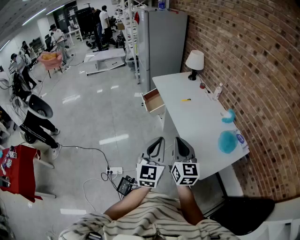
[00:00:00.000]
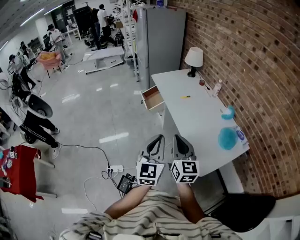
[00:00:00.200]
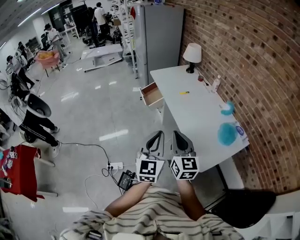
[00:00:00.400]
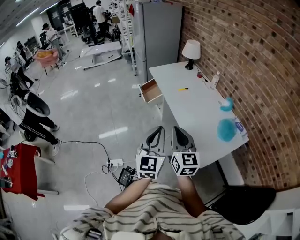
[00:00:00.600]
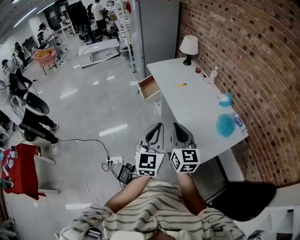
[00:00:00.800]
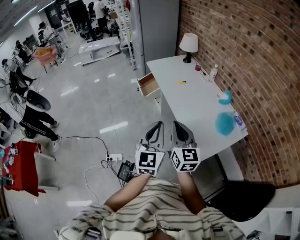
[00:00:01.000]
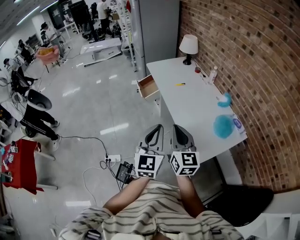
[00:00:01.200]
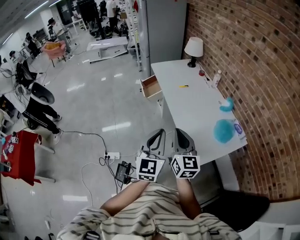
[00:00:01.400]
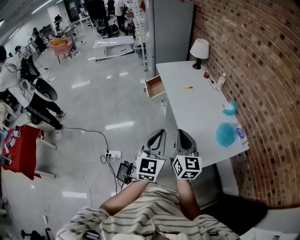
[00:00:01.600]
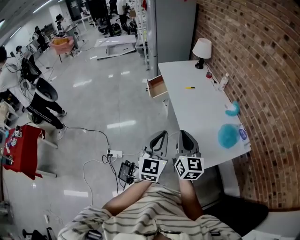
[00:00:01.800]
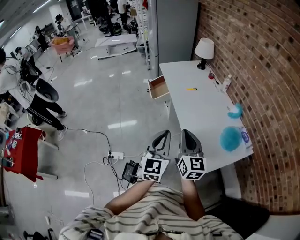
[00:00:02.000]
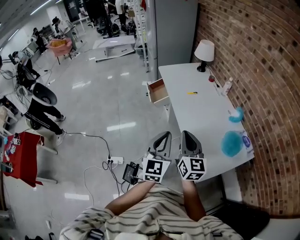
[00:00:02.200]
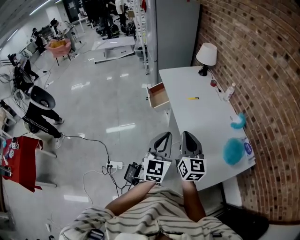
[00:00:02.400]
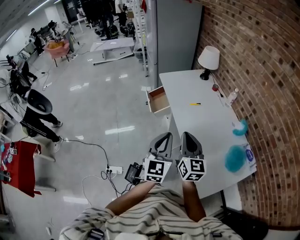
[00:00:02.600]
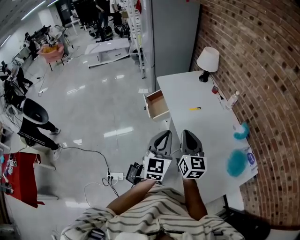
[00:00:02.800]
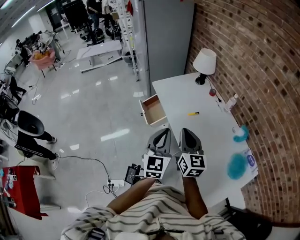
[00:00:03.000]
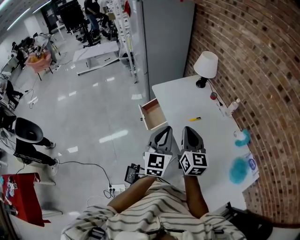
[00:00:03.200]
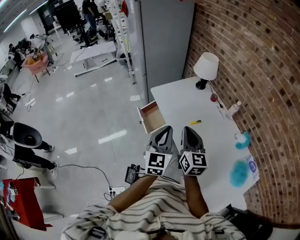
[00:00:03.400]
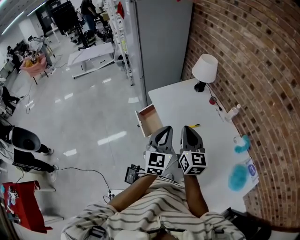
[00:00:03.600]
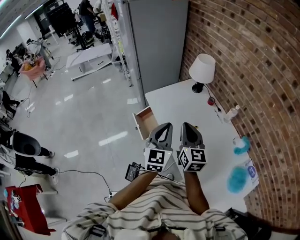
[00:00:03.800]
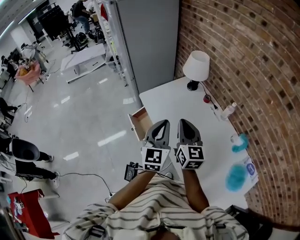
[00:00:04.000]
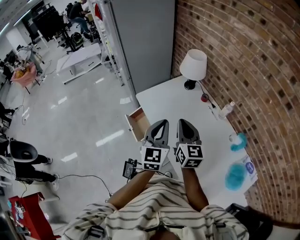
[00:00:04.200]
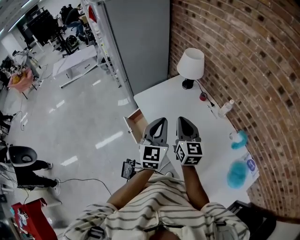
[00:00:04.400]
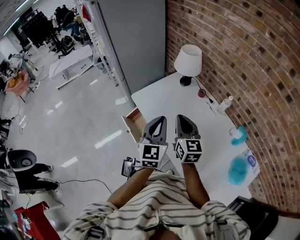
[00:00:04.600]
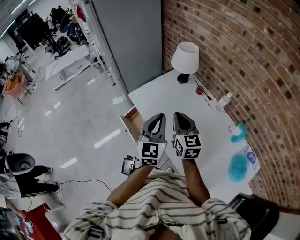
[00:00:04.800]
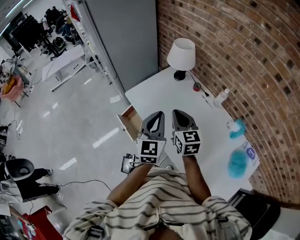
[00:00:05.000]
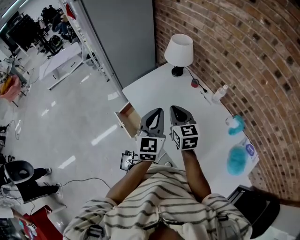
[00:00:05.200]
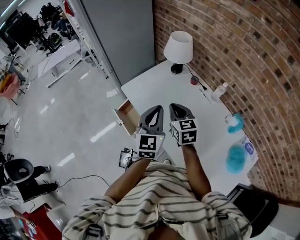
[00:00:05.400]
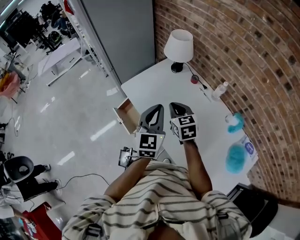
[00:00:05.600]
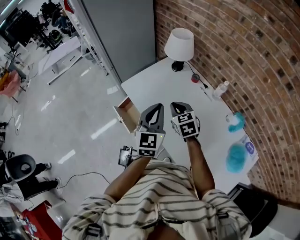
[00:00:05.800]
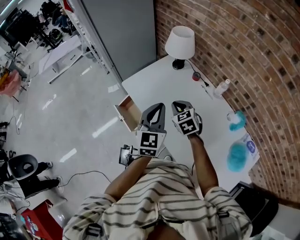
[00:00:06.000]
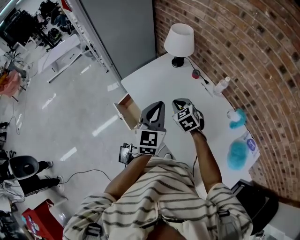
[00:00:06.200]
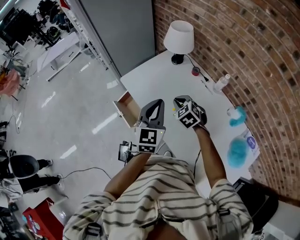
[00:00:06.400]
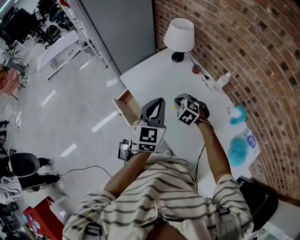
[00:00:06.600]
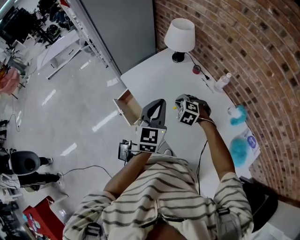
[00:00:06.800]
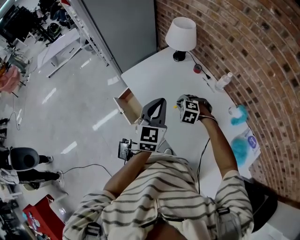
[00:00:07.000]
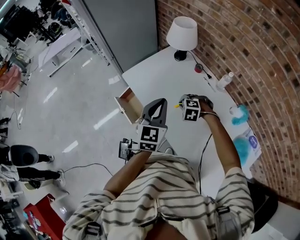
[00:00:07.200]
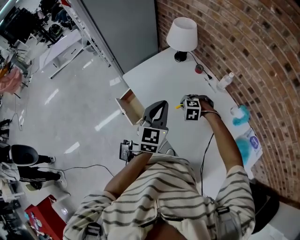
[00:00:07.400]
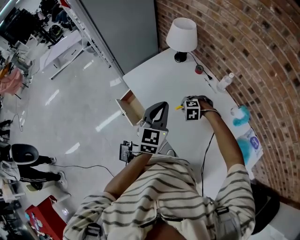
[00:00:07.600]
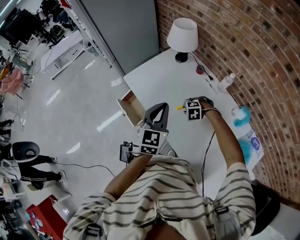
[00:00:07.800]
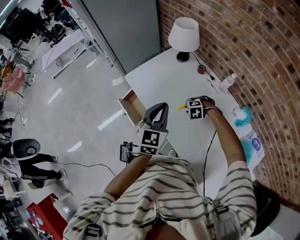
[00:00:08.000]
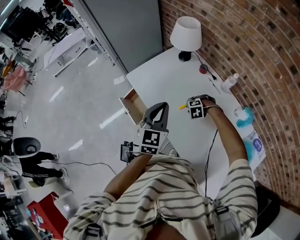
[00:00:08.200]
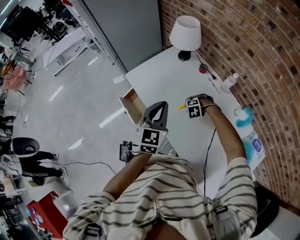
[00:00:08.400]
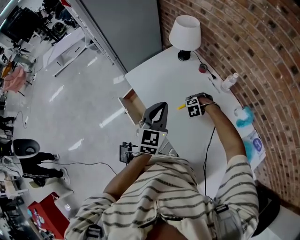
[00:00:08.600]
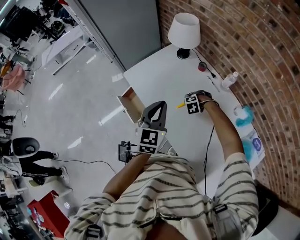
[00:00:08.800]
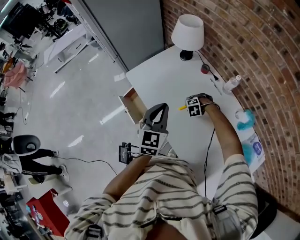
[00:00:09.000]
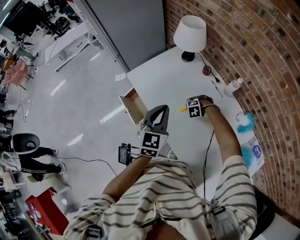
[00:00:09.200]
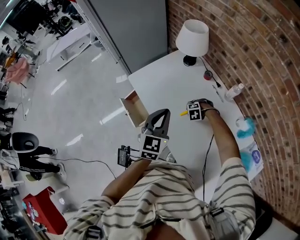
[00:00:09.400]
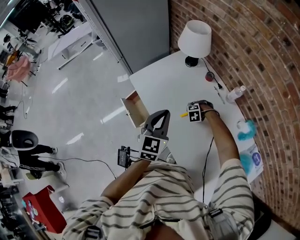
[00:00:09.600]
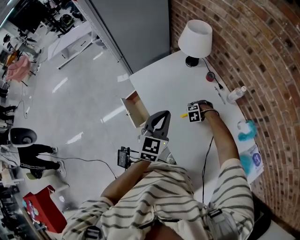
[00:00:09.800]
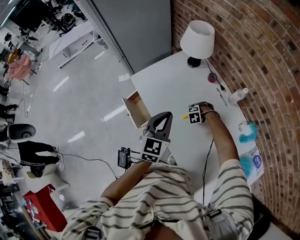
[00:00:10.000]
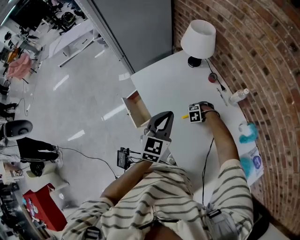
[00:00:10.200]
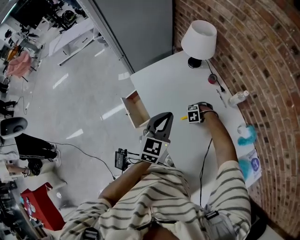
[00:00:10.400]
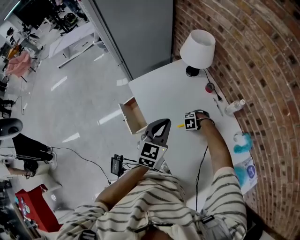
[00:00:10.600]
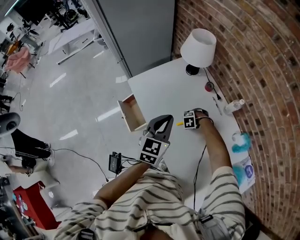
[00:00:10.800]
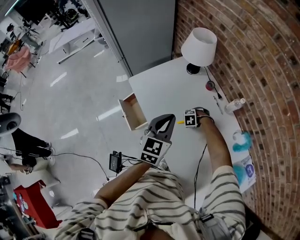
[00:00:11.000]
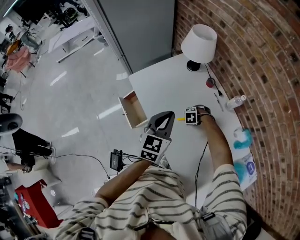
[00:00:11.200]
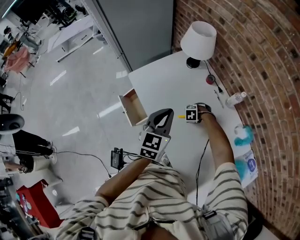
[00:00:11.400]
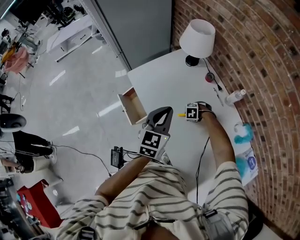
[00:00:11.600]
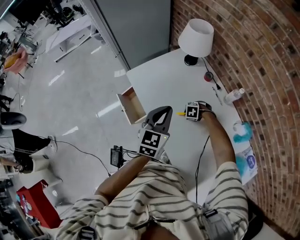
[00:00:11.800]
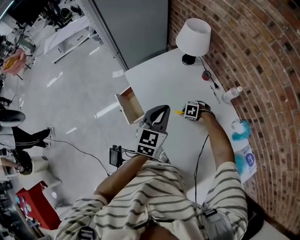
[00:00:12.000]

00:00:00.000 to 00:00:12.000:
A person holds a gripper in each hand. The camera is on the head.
00:00:00.000 to 00:00:01.600: The grippers both shift to the right by approximately 10 cm.
00:00:01.600 to 00:00:03.000: Both grippers move forward, roughly 35 cm.
00:00:03.000 to 00:00:04.400: Both grippers travel together forward, some 25 cm.
00:00:04.400 to 00:00:06.000: The left gripper changes place by roughly 5 cm; the right gripper goes approximately 15 cm downward and forward, and points its fingers approximately 30 degrees further downward.
00:00:06.000 to 00:00:07.600: The right gripper moves downward, approximately 15 cm, and tips its fingers downward by some 40 degrees.
00:00:07.600 to 00:00:09.000: The right gripper moves downward, approximately 10 cm.
00:00:09.000 to 00:00:10.400: The right gripper shifts by approximately 5 cm.
00:00:10.400 to 00:00:12.000: The grippers stay close to where they were, moving slightly.

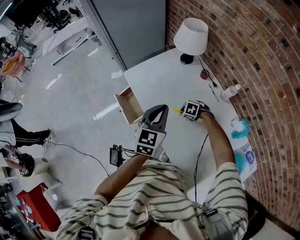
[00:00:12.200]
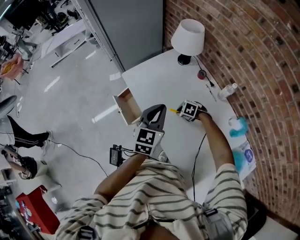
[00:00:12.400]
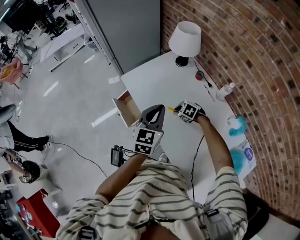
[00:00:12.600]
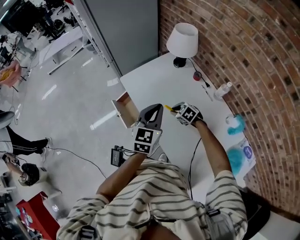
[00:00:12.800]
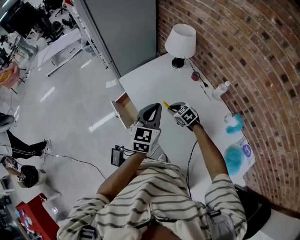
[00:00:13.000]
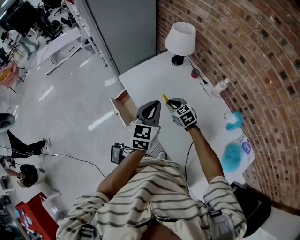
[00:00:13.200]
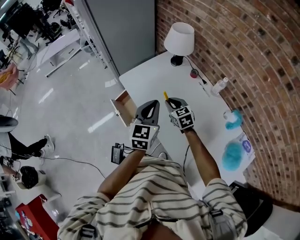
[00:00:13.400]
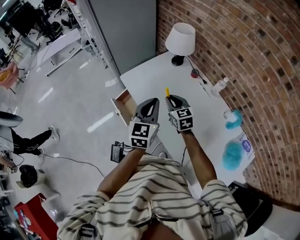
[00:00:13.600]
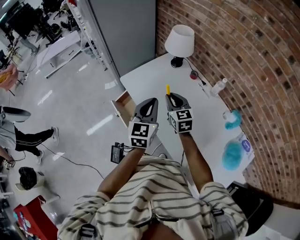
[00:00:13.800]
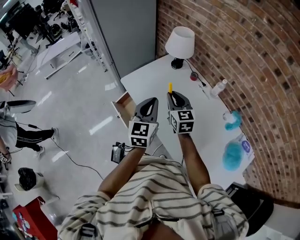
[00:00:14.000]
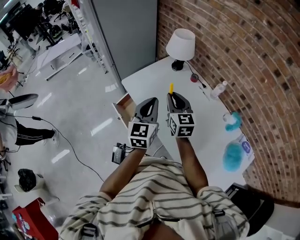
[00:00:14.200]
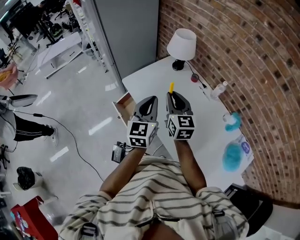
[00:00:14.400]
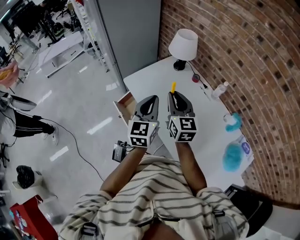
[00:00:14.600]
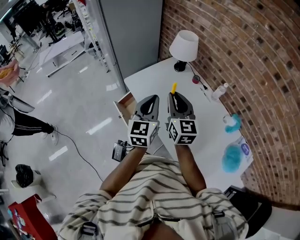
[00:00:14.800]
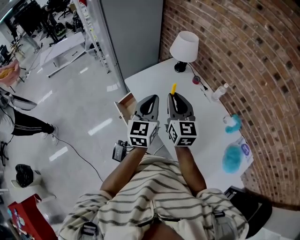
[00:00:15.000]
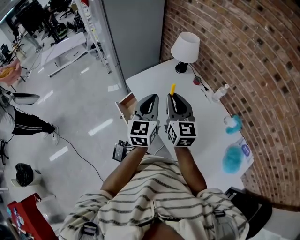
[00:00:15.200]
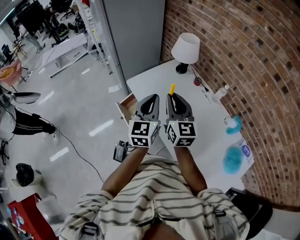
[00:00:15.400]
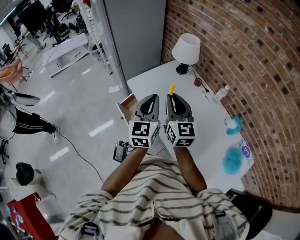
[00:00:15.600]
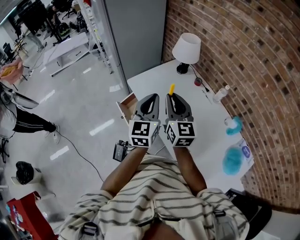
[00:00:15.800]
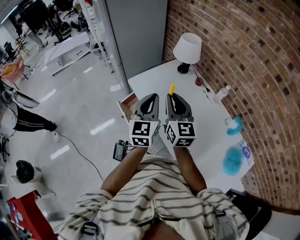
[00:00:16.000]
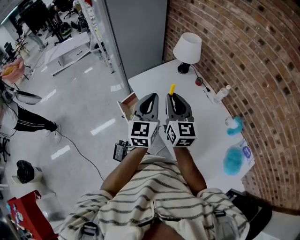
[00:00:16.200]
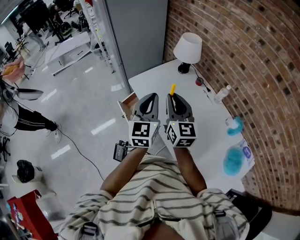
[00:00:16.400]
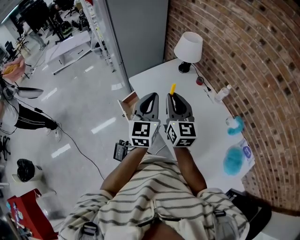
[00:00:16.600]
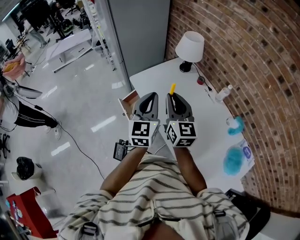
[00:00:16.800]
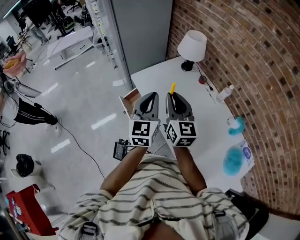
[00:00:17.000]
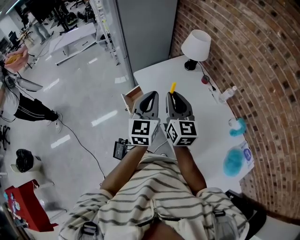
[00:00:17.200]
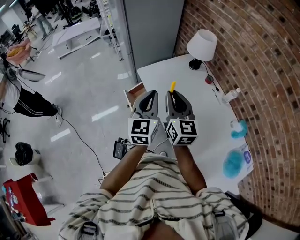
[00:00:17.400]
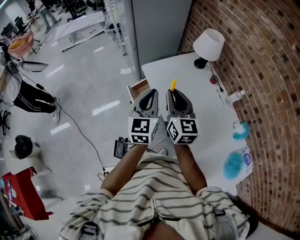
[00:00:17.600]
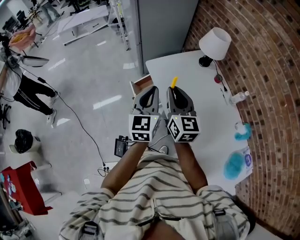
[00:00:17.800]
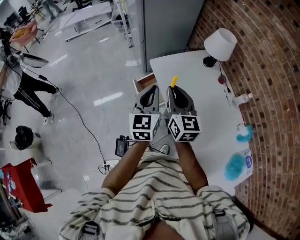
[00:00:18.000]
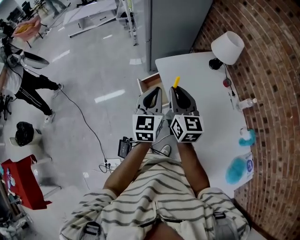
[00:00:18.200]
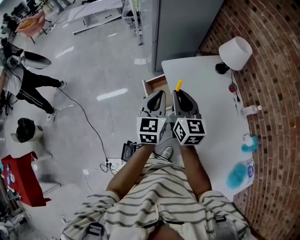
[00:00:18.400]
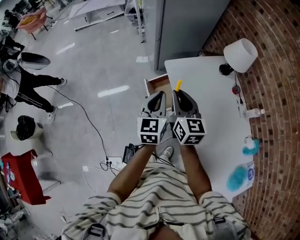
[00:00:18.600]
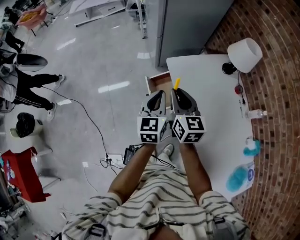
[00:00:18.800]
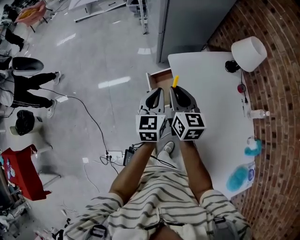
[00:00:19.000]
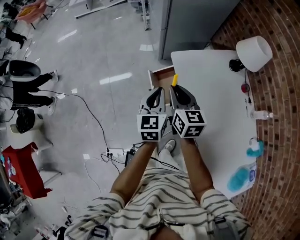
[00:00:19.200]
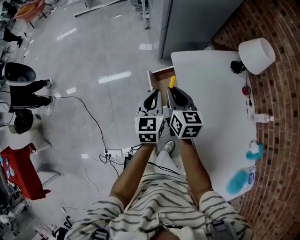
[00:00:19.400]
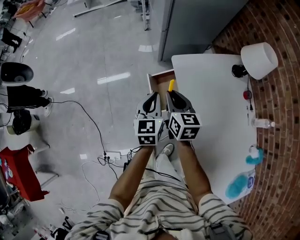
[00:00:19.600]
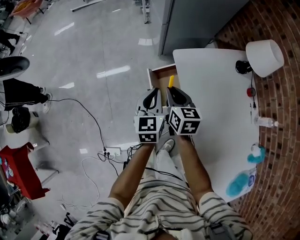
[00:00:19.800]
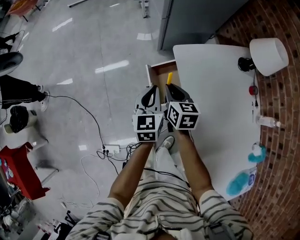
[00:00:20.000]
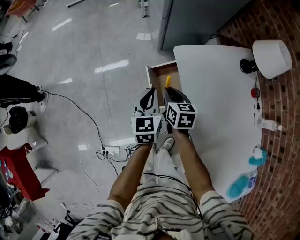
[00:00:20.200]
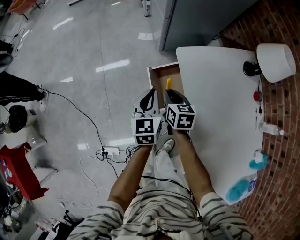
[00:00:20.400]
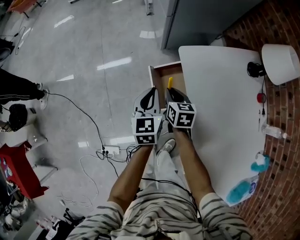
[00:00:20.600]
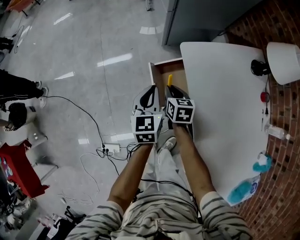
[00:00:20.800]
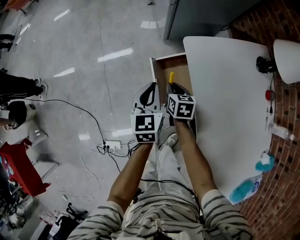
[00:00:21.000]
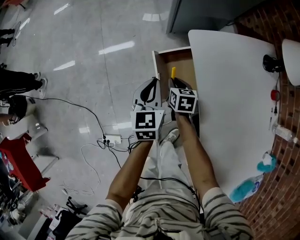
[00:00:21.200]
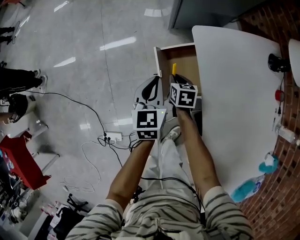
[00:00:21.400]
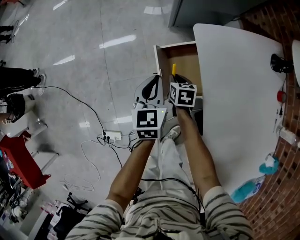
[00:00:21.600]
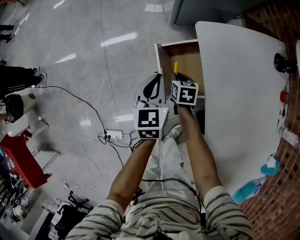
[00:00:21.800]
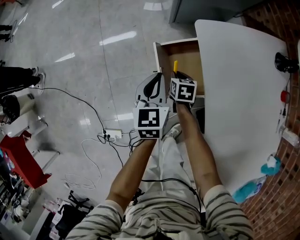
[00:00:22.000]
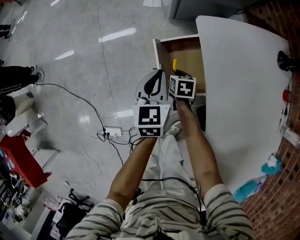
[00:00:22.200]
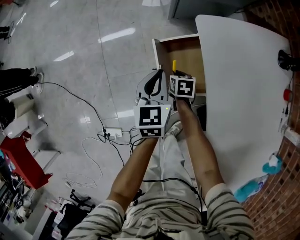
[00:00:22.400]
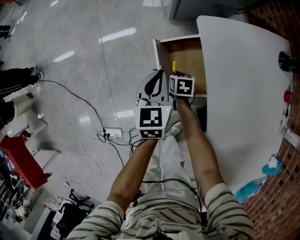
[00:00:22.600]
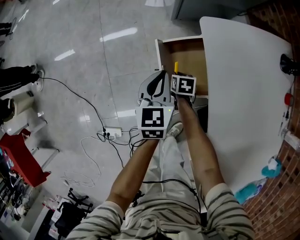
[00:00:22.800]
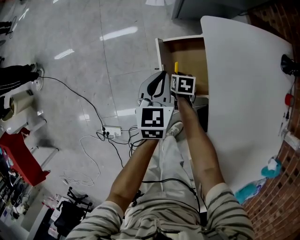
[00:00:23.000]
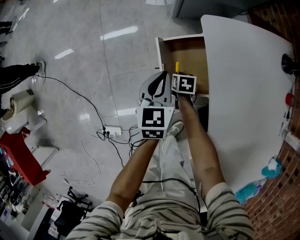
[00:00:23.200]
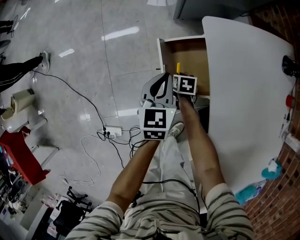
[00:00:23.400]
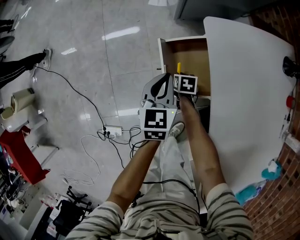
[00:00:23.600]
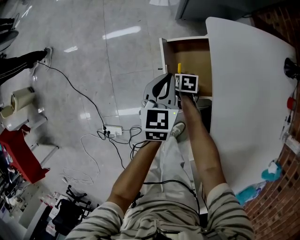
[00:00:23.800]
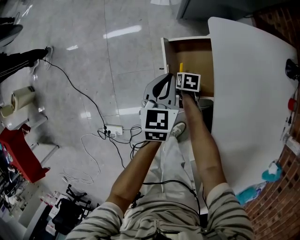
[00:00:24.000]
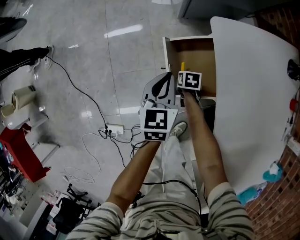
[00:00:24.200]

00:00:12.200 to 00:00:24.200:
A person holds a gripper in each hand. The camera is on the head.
00:00:12.200 to 00:00:13.800: The right gripper is displaced upward by roughly 30 cm, and tips its fingers upward by roughly 50 degrees. The left gripper changes place by about 5 cm.
00:00:13.800 to 00:00:15.200: The left gripper changes place by approximately 5 cm. The right gripper moves upward and backward, about 15 cm.
00:00:15.200 to 00:00:16.600: The grippers move only a little.
00:00:16.600 to 00:00:18.200: The right gripper moves to the left, roughly 15 cm, while the left gripper is displaced to the left and downward by approximately 15 cm.
00:00:18.200 to 00:00:19.800: The left gripper is displaced downward, forward and to the left by roughly 20 cm; the right gripper travels downward and forward by some 25 cm, and rotates about 30 degrees.
00:00:19.800 to 00:00:21.200: The right gripper goes some 25 cm downward. The left gripper travels downward by about 15 cm.
00:00:21.200 to 00:00:22.600: The left gripper is displaced downward by about 5 cm. Meanwhile the right gripper heads downward, covering roughly 15 cm.
00:00:22.600 to 00:00:24.200: The right gripper shifts approximately 5 cm downward.
